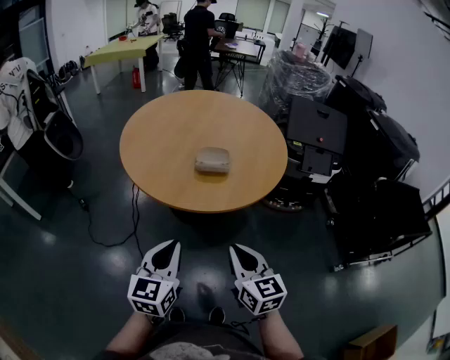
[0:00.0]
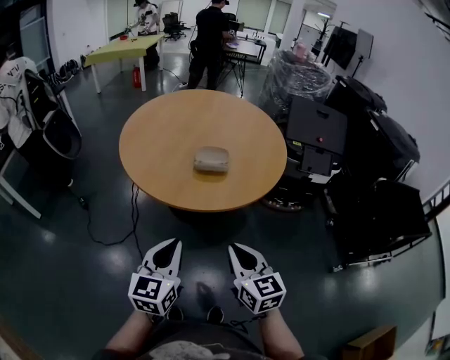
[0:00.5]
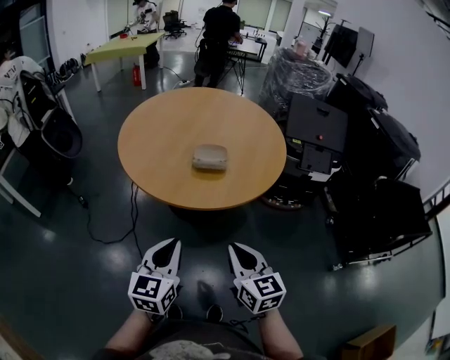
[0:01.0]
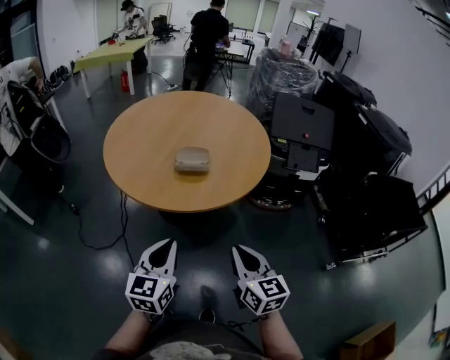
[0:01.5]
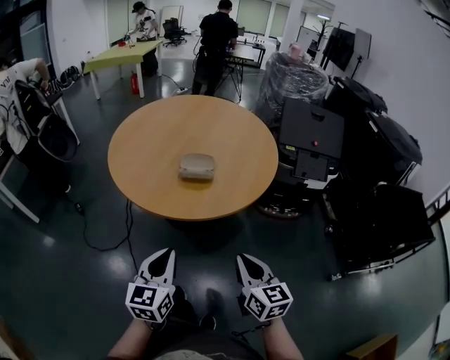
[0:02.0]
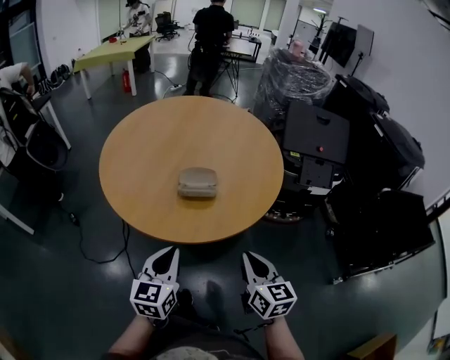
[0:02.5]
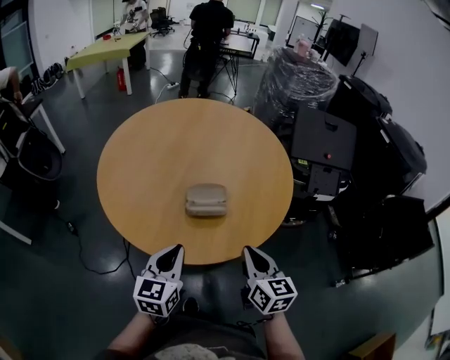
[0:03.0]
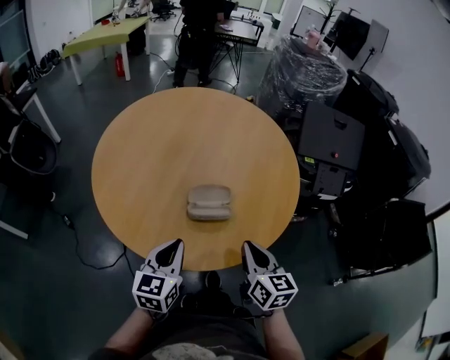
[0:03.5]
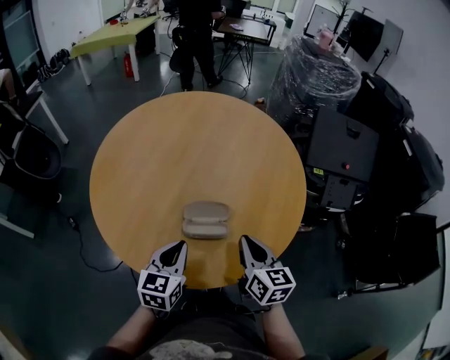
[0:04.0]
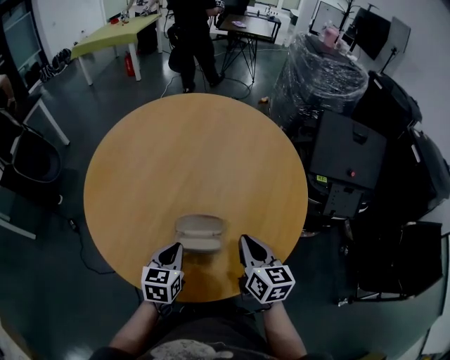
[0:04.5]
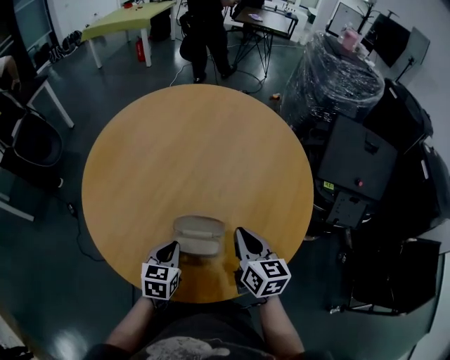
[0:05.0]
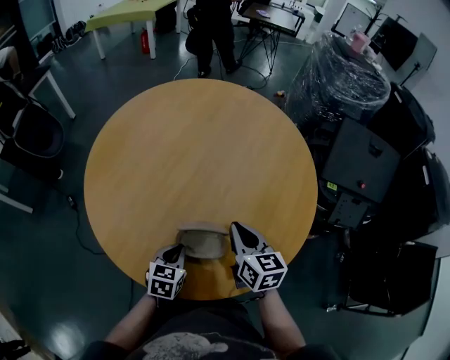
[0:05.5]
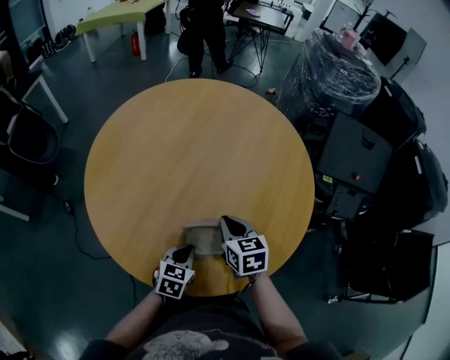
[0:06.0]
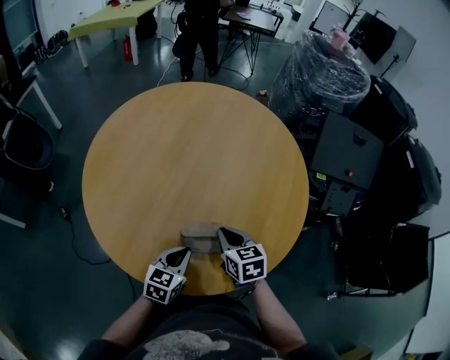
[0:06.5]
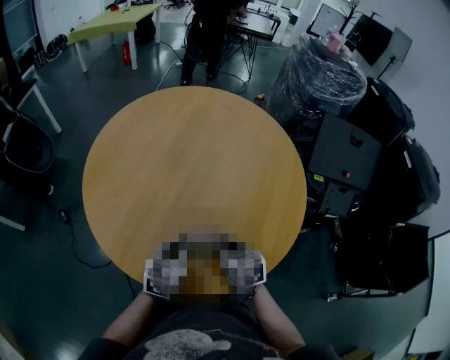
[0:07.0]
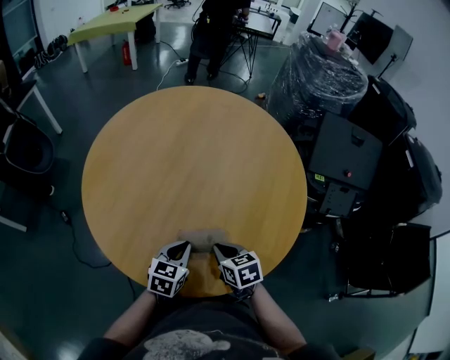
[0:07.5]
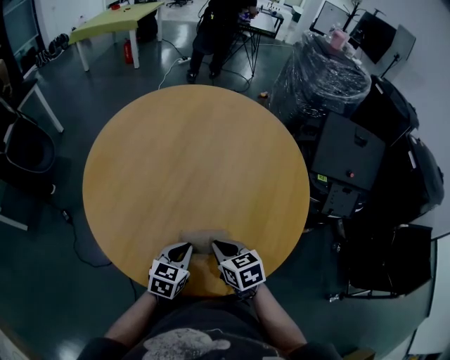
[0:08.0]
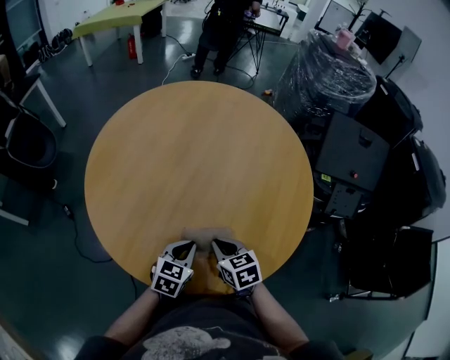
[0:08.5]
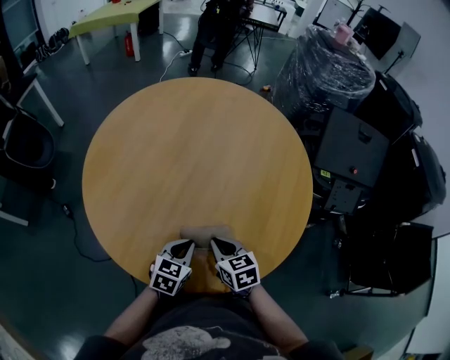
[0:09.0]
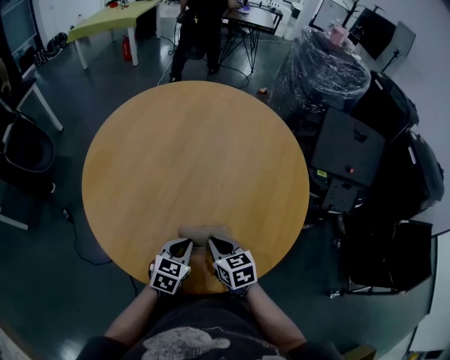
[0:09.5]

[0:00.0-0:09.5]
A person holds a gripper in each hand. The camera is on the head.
0:00.0 to 0:02.0: The left gripper shifts roughly 5 cm to the right. Meanwhile the right gripper goes roughly 10 cm to the right.
0:02.0 to 0:04.0: Both grippers travel together forward, about 35 cm.
0:04.0 to 0:05.5: The right gripper moves forward, about 10 cm, while the left gripper is displaced downward by about 10 cm, and swivels some 20 degrees.
0:05.5 to 0:07.5: The right gripper travels downward and backward by roughly 10 cm, and changes its angle by roughly 20 degrees.
0:07.5 to 0:09.5: There are only small adjustments of the grippers.

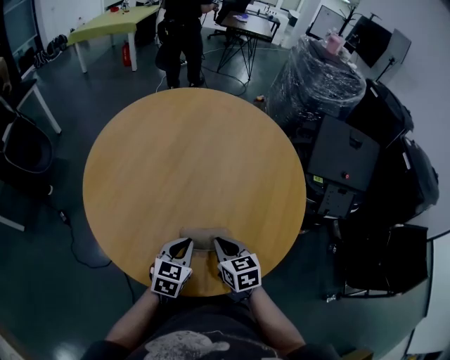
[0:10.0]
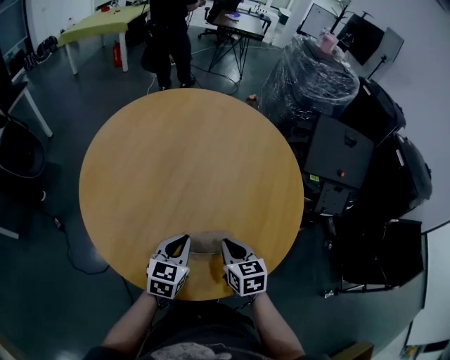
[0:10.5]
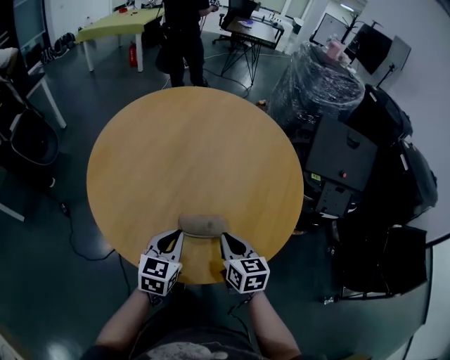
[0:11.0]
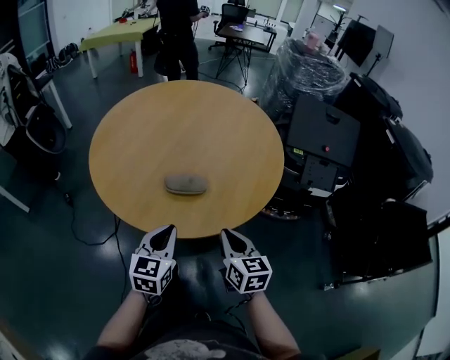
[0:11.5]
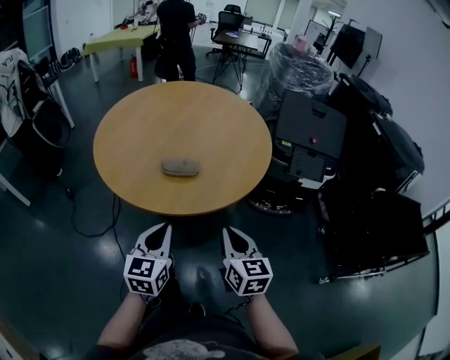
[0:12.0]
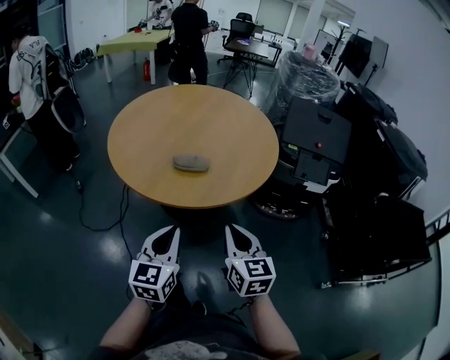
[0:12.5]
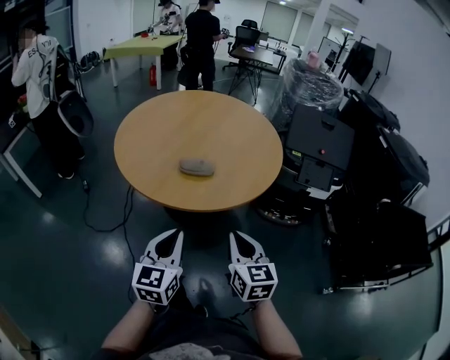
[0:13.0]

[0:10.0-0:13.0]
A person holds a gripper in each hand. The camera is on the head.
0:10.0 to 0:11.5: The left gripper travels backward by approximately 20 cm. The right gripper is displaced backward and to the right by approximately 25 cm.
0:11.5 to 0:13.0: The grippers both shift backward by approximately 20 cm.

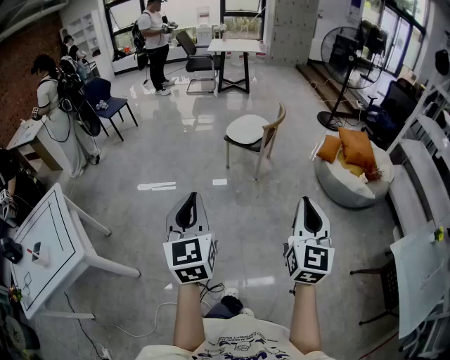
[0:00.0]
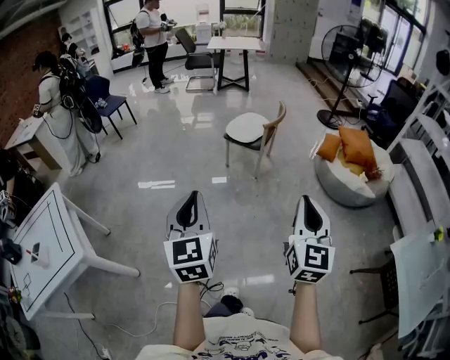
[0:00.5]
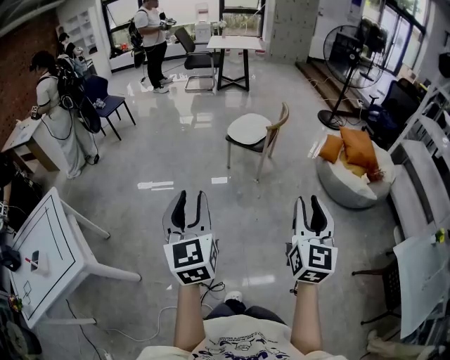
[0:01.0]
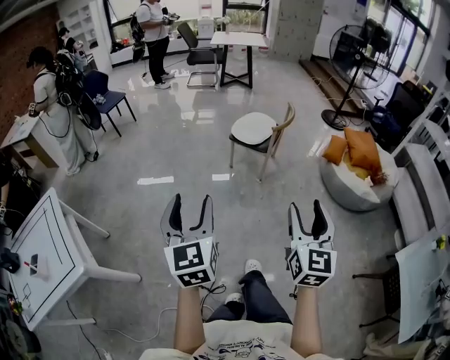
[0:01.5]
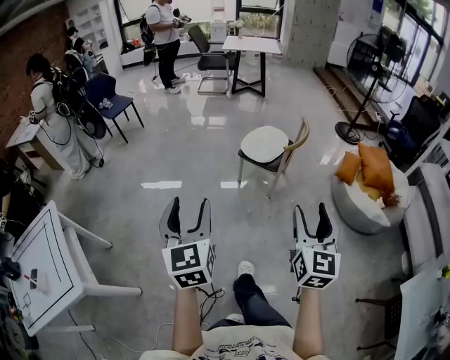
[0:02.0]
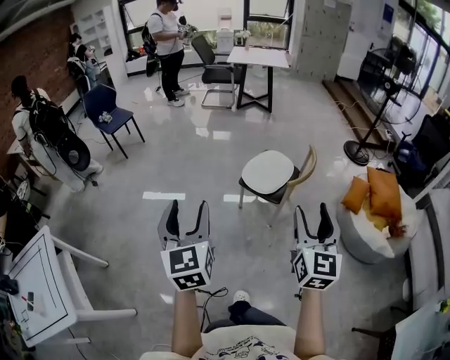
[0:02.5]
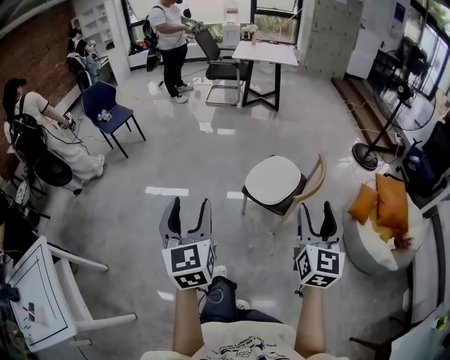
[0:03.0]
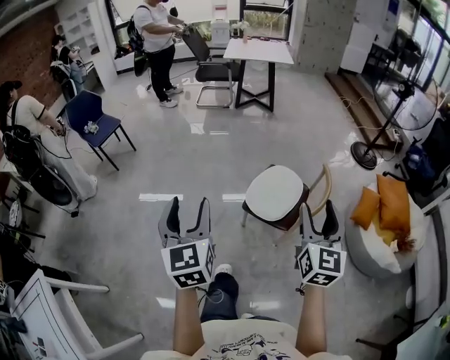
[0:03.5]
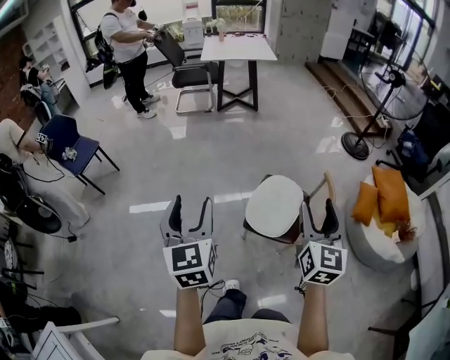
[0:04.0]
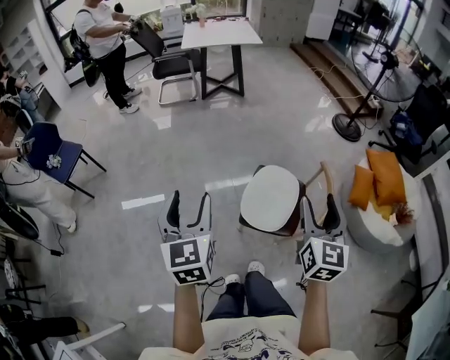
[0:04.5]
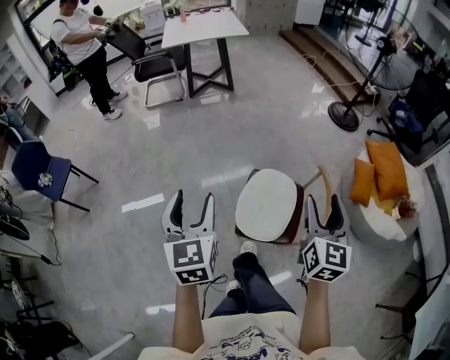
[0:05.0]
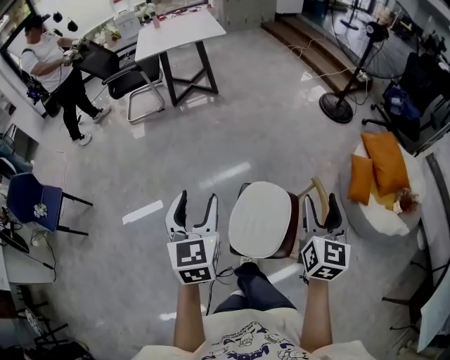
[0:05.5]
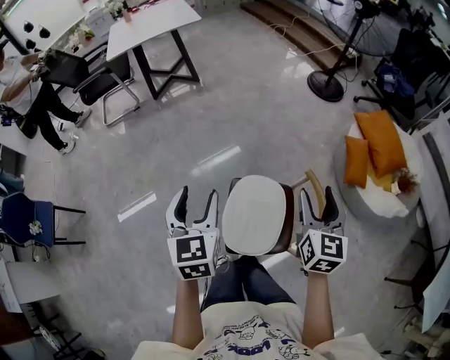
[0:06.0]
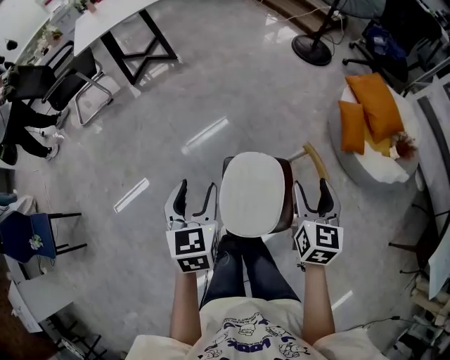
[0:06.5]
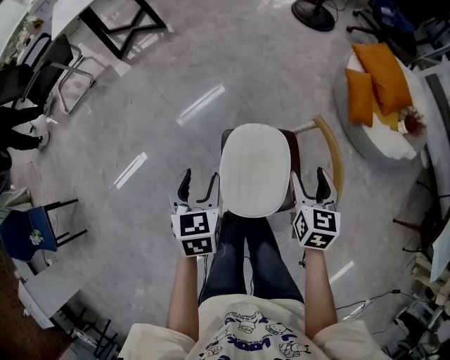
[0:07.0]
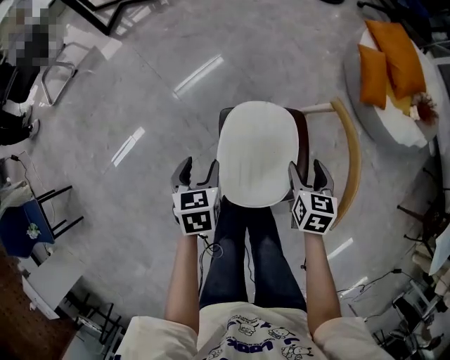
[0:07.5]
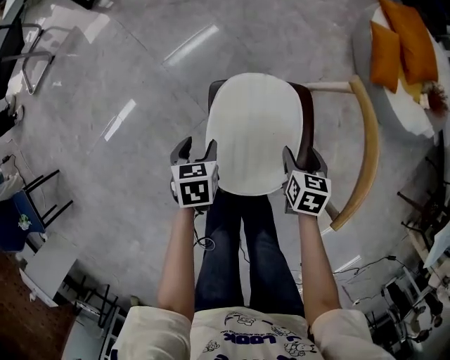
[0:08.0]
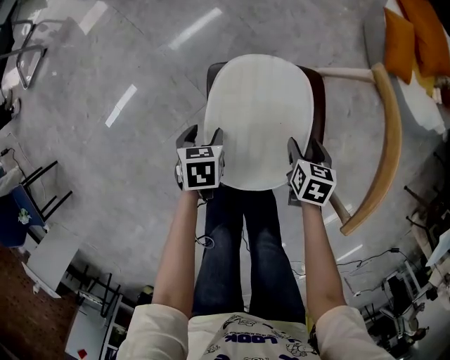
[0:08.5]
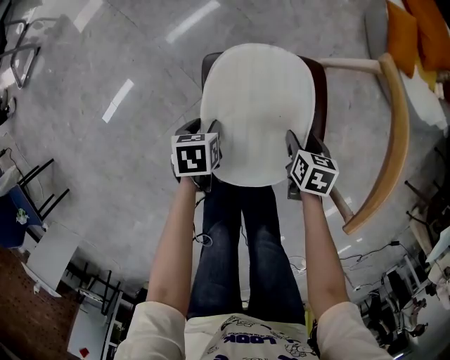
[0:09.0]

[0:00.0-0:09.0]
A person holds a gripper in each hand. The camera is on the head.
0:00.0 to 0:02.0: The two grippers go roughly 30 cm forward. The left gripper opens. Meanwhile the right gripper opens up.
0:02.0 to 0:04.5: Both grippers are carried forward, about 80 cm.
0:04.5 to 0:07.0: Both grippers travel together forward and downward, some 50 cm. The right gripper changes its angle by approximately 40 degrees; the left gripper tips its fingers downward by some 30 degrees.
0:07.0 to 0:09.0: Both grippers travel together downward, some 40 cm. The left gripper turns by roughly 30 degrees. The right gripper rotates roughly 30 degrees.

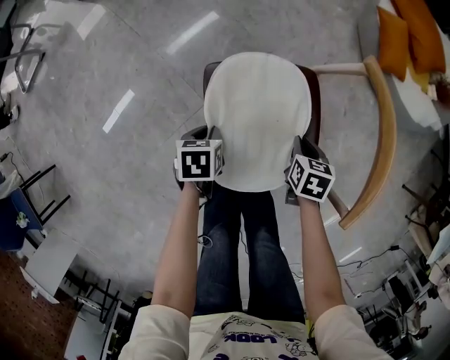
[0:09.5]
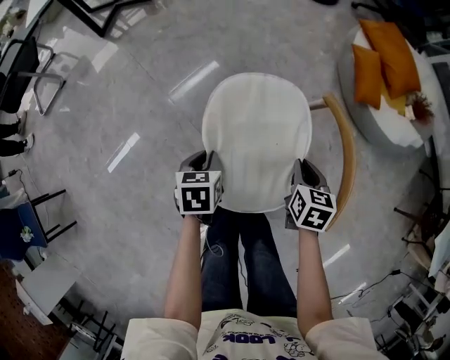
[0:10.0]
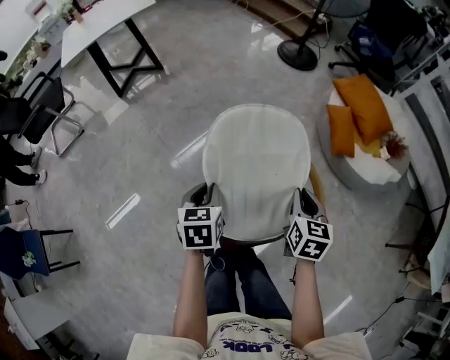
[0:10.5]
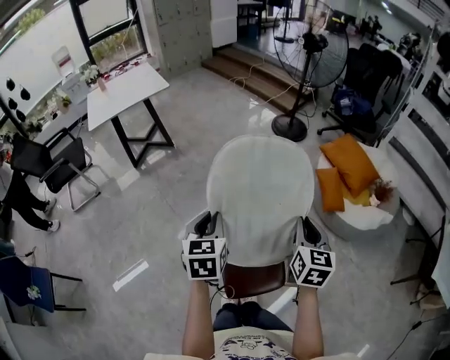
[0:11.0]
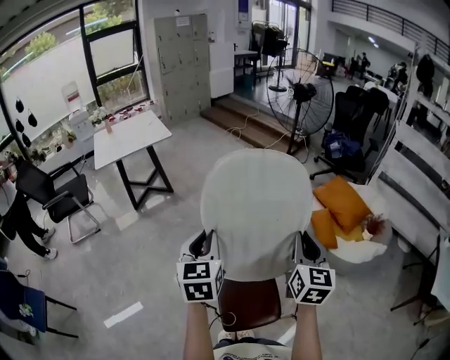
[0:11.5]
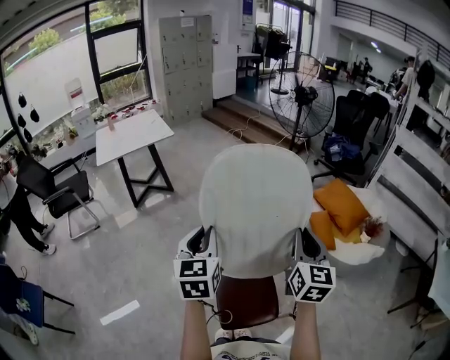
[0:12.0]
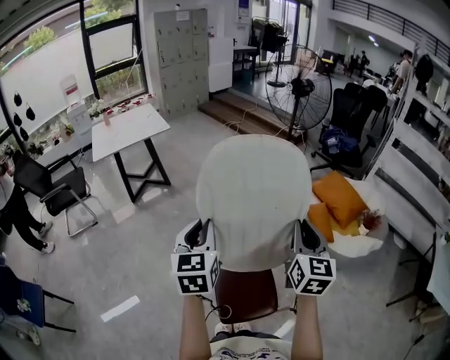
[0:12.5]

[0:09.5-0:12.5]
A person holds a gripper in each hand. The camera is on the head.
0:09.5 to 0:11.0: The two grippers go some 70 cm upward. The left gripper points its fingers approximately 40 degrees further upward. The right gripper tilts its fingers about 50 degrees upward.
0:11.0 to 0:12.5: Both grippers travel together upward, about 15 cm.

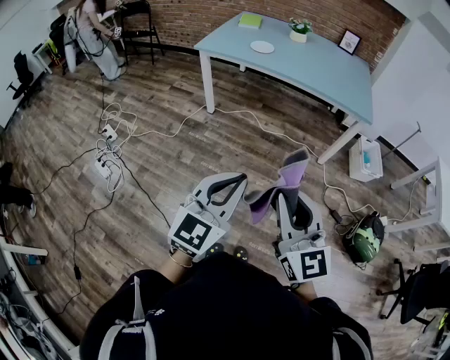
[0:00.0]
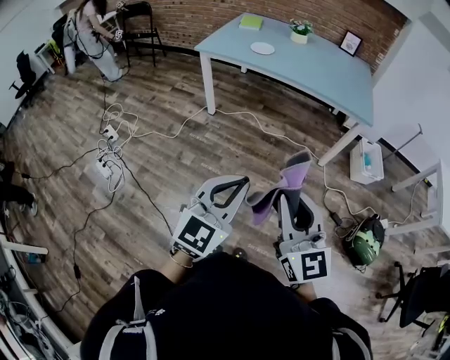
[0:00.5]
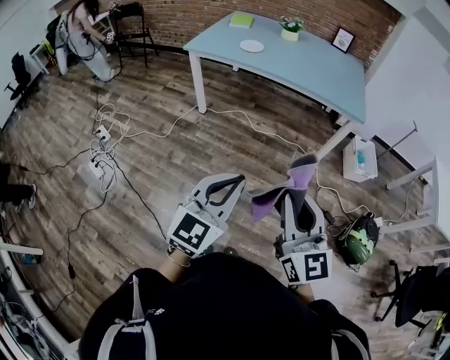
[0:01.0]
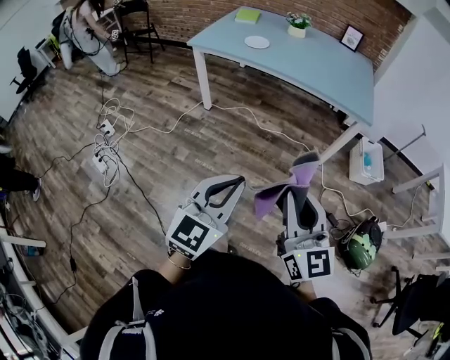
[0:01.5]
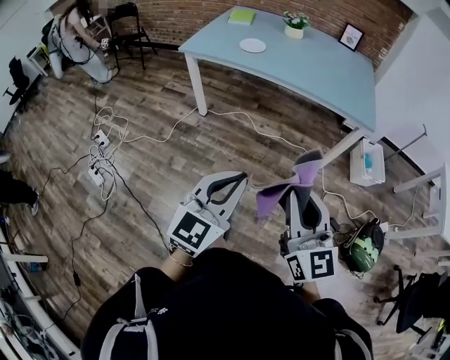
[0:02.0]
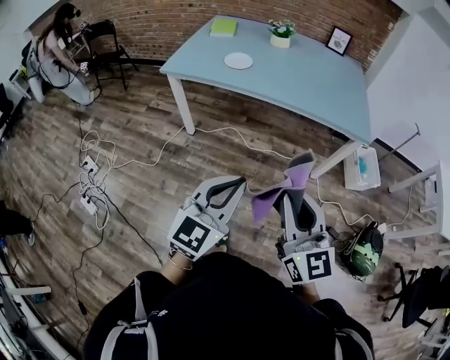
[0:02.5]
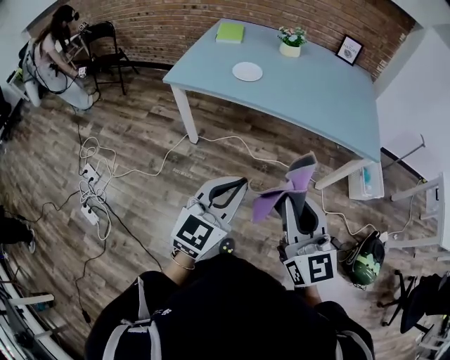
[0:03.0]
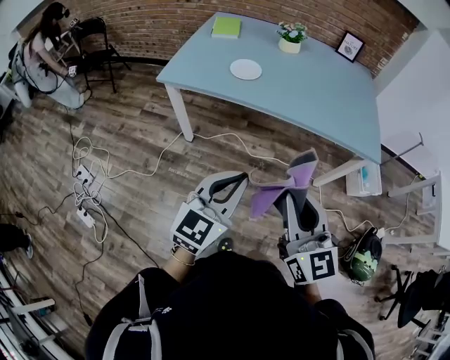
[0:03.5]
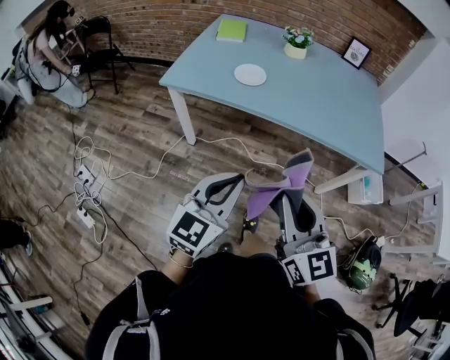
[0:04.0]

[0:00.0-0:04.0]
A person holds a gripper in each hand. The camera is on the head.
0:00.0 to 0:02.0: The left gripper moves forward, roughly 15 cm; the right gripper shifts some 15 cm forward and to the right.
0:02.0 to 0:04.0: Both grippers travel together forward and to the left, roughly 30 cm.
